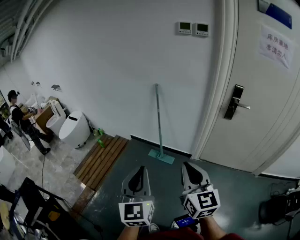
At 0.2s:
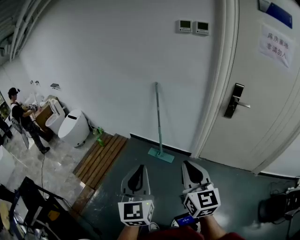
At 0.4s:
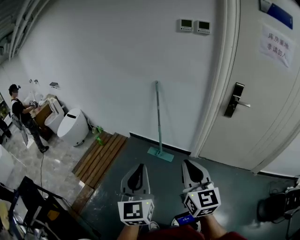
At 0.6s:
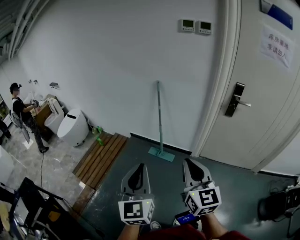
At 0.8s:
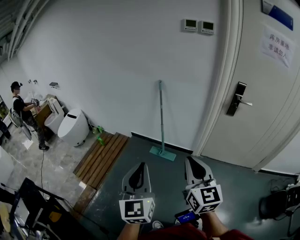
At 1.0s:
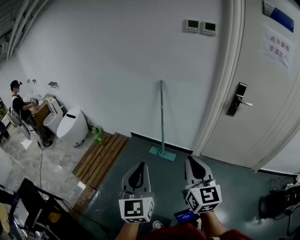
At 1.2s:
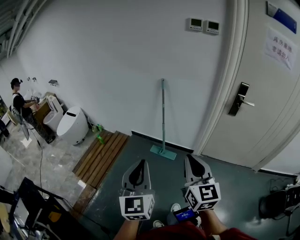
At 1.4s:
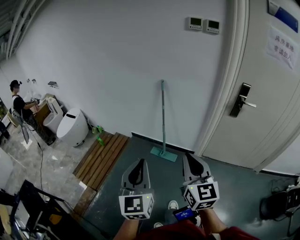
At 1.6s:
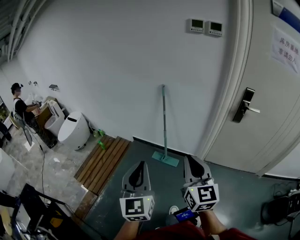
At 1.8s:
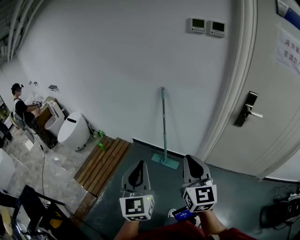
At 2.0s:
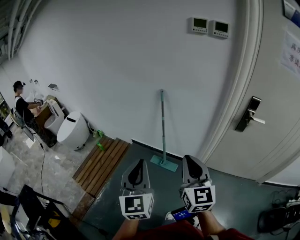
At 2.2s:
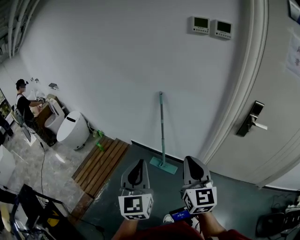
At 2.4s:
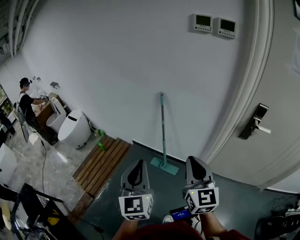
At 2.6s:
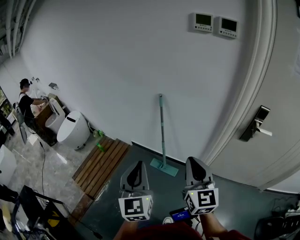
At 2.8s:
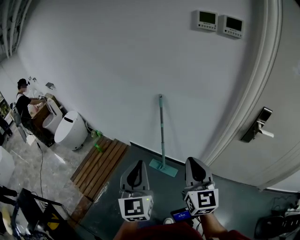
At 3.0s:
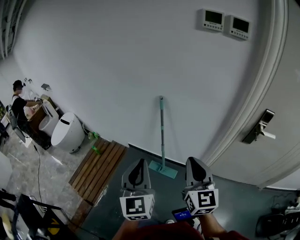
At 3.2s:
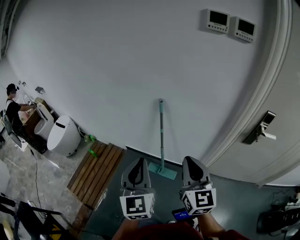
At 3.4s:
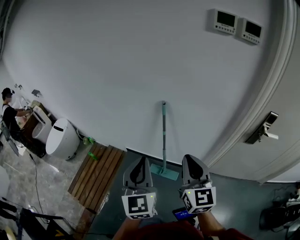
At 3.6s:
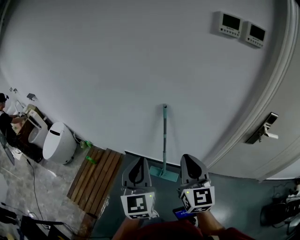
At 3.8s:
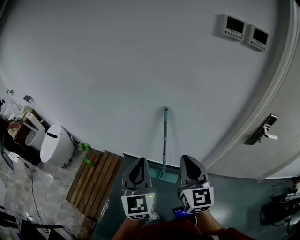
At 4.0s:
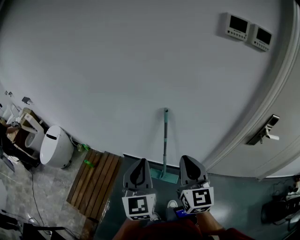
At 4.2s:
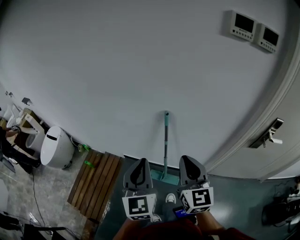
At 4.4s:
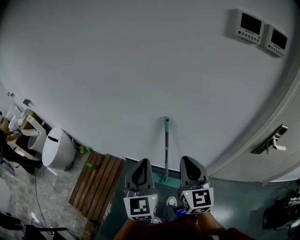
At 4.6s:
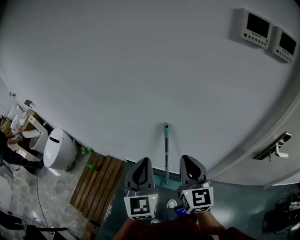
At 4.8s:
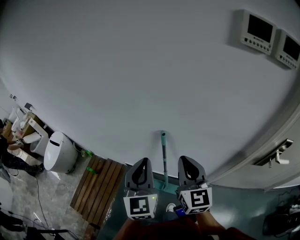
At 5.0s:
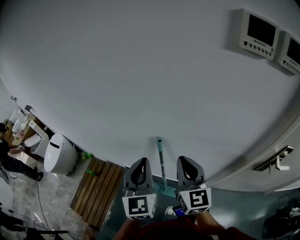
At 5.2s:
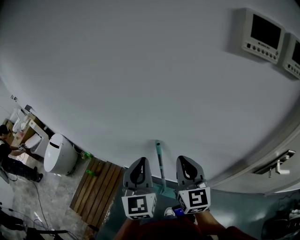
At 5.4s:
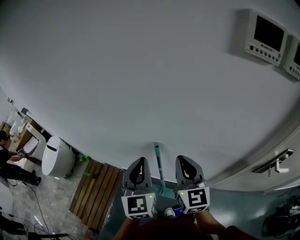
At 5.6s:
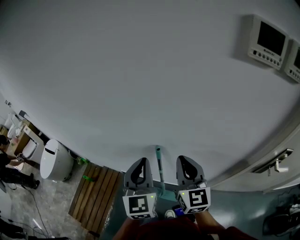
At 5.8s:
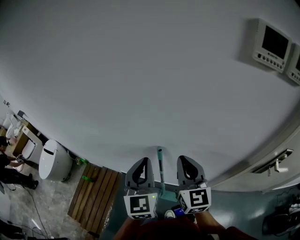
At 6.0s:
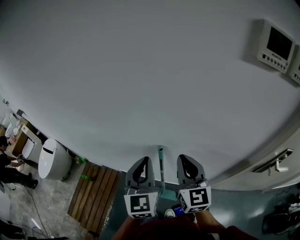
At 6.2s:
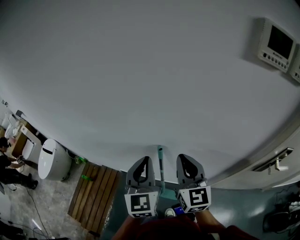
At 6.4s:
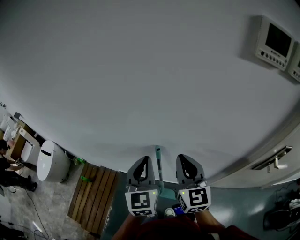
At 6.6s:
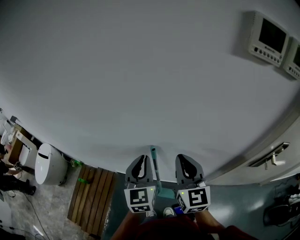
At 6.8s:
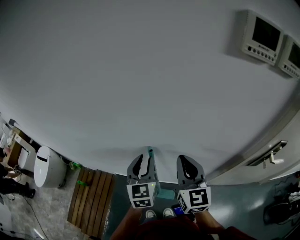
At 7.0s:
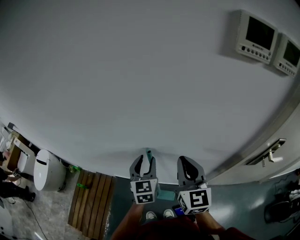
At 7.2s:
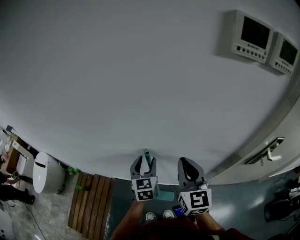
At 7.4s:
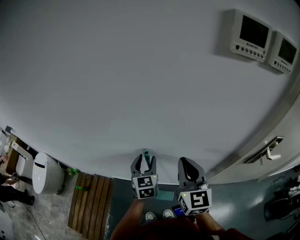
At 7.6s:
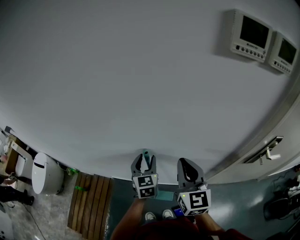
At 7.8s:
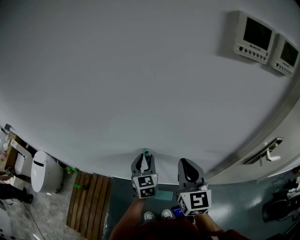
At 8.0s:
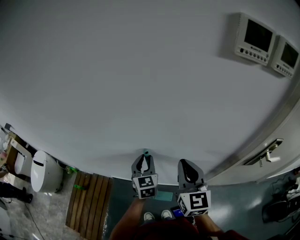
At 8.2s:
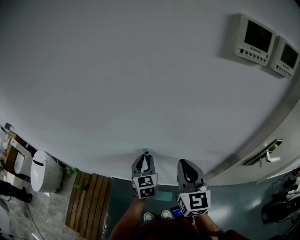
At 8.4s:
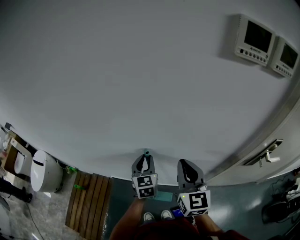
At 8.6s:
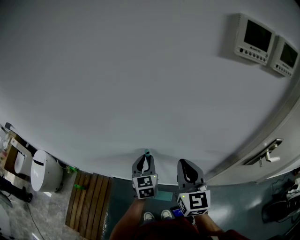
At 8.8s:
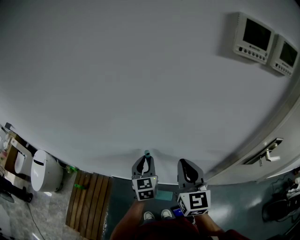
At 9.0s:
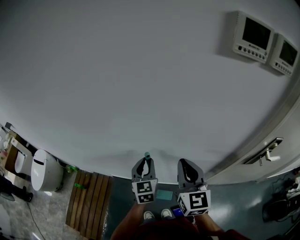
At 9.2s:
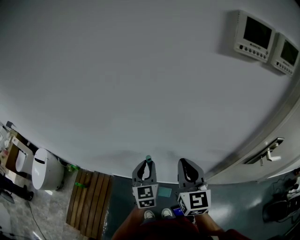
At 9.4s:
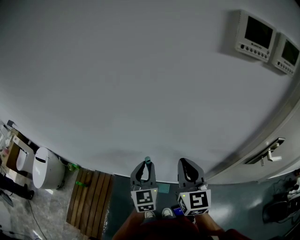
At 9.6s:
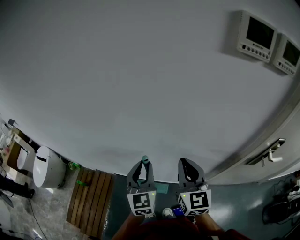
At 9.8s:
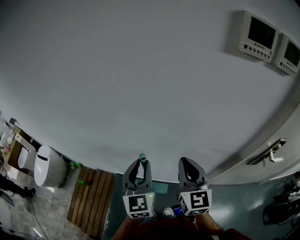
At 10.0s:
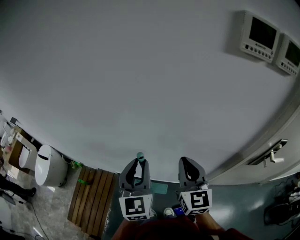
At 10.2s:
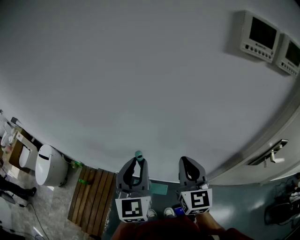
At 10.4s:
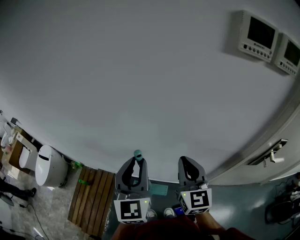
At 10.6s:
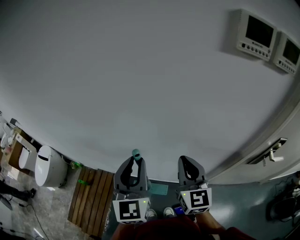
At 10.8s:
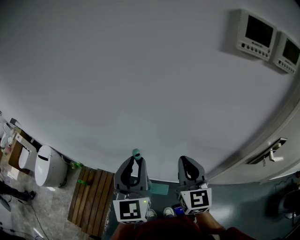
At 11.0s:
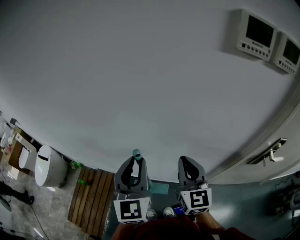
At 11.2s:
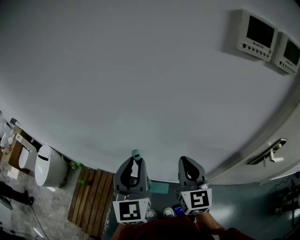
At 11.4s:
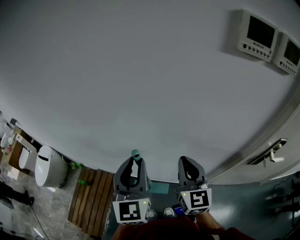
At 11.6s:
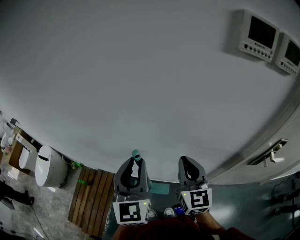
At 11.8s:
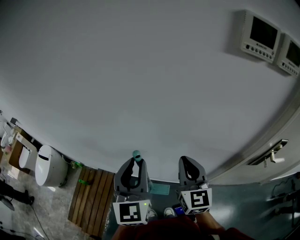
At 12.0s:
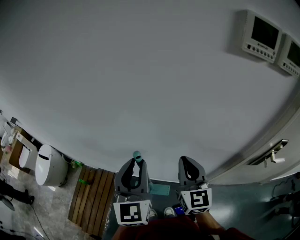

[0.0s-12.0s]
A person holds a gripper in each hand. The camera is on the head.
0.0s to 1.6s: The left gripper travels forward and to the left by some 10 cm, while the right gripper moves forward, approximately 10 cm.
1.6s to 3.0s: Both grippers travel together forward, approximately 25 cm.
3.0s to 4.4s: Both grippers travel together forward, approximately 20 cm.
4.4s to 6.0s: The grippers both shift forward by some 15 cm.
6.0s to 7.6s: The right gripper shifts roughly 5 cm to the right; the left gripper travels downward and forward by approximately 15 cm, and opens its fingers.
7.6s to 9.0s: The left gripper closes up.
9.0s to 10.4s: The left gripper shifts approximately 20 cm upward and backward.
10.4s to 12.0s: Both grippers stay about where they are.

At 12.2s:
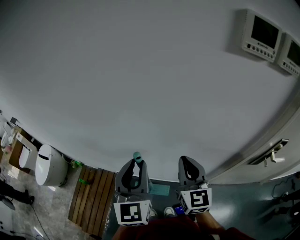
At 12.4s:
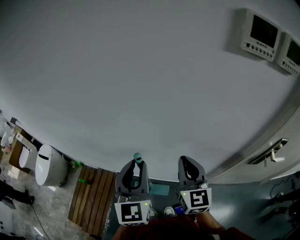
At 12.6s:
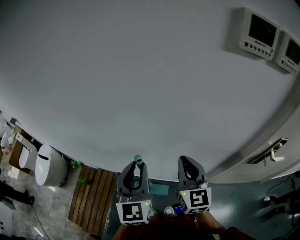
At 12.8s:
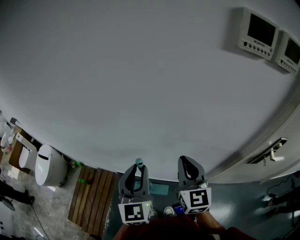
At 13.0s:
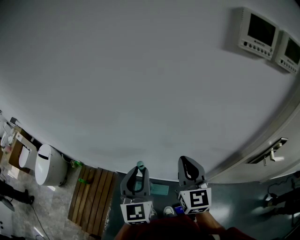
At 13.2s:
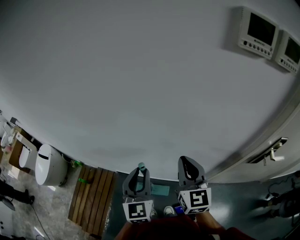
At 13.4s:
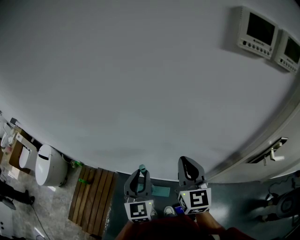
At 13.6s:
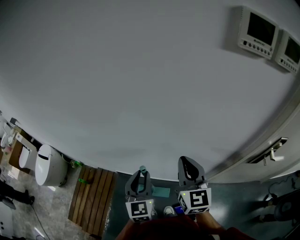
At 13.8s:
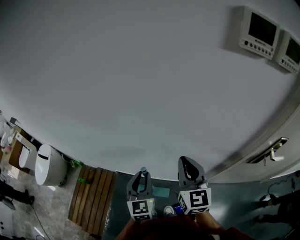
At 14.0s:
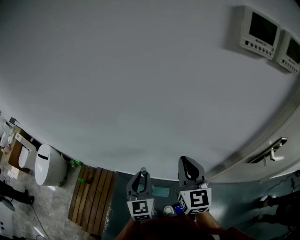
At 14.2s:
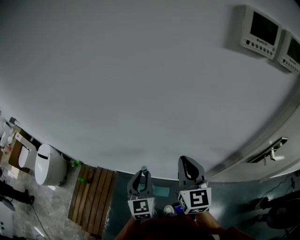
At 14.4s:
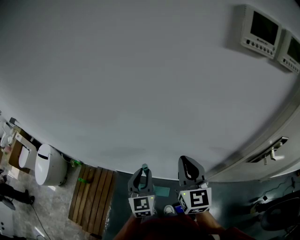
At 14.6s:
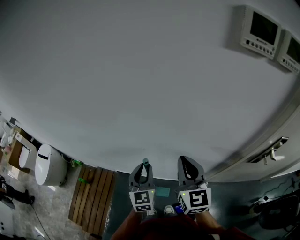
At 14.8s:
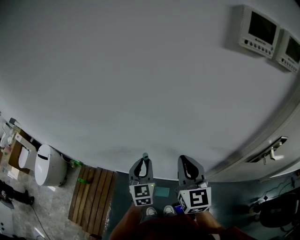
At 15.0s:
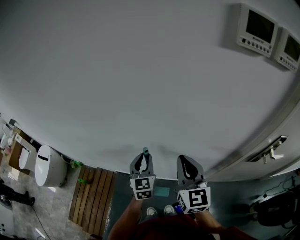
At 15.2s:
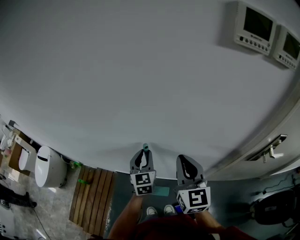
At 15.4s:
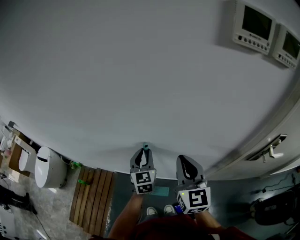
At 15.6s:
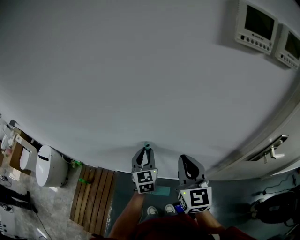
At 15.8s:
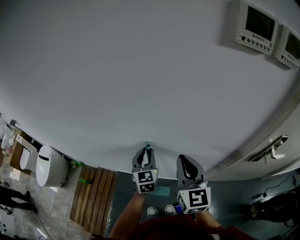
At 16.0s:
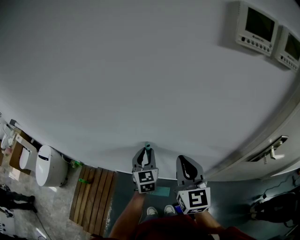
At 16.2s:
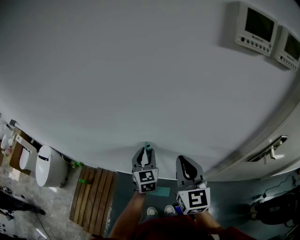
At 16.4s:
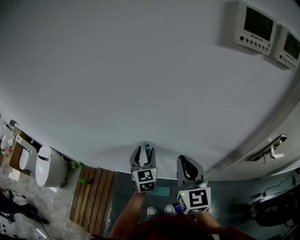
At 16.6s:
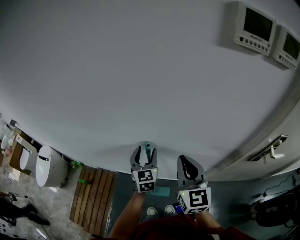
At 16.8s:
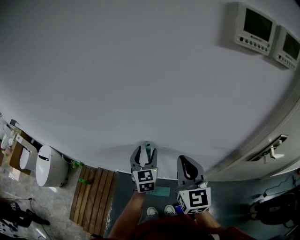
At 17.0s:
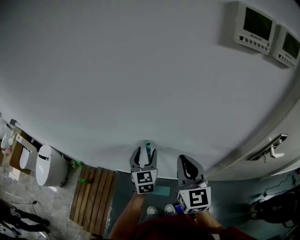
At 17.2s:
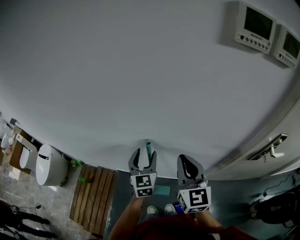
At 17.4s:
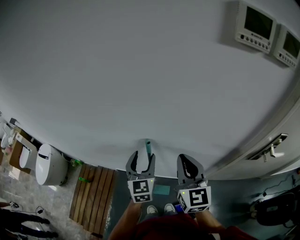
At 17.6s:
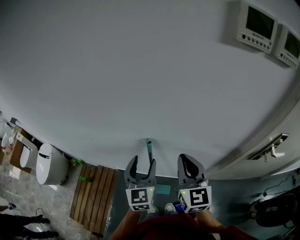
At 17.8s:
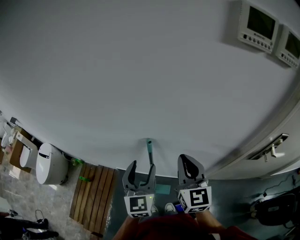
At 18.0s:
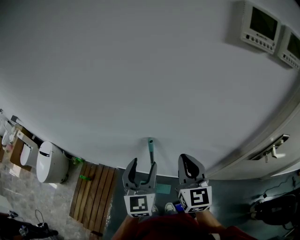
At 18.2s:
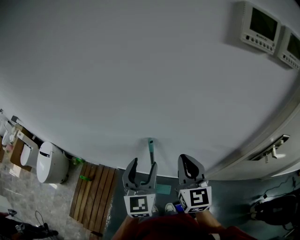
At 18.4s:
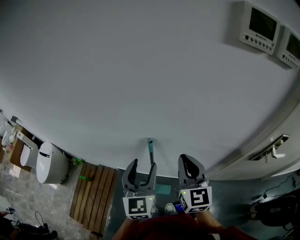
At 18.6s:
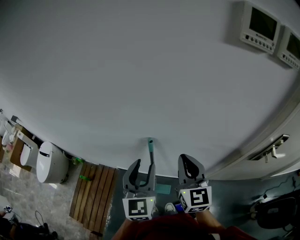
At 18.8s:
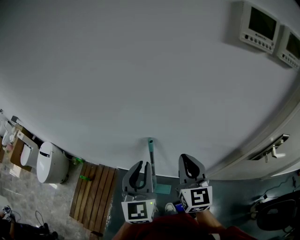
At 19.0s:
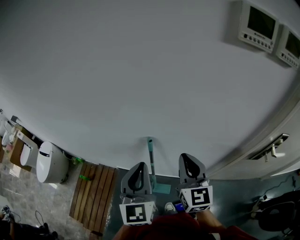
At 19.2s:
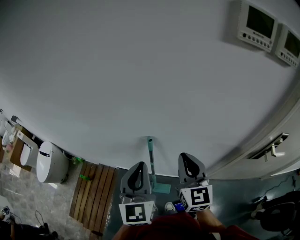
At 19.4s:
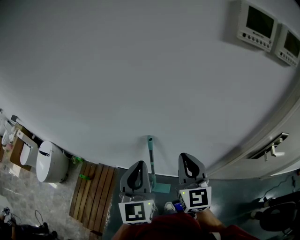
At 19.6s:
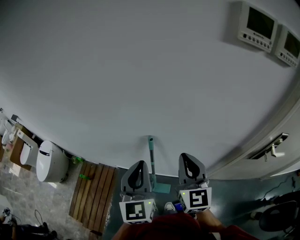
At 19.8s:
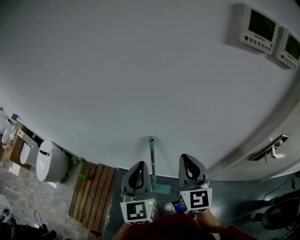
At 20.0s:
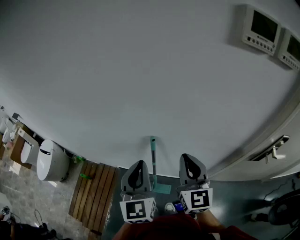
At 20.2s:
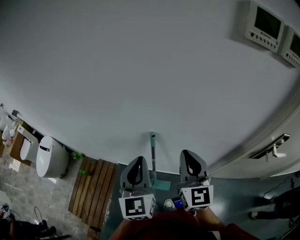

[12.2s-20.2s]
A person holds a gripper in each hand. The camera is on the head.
12.2s to 13.8s: The left gripper travels downward by roughly 15 cm.
13.8s to 15.4s: The left gripper goes roughly 10 cm forward.
15.4s to 17.0s: The left gripper opens.
17.0s to 18.6s: The left gripper moves upward and backward, about 15 cm.
18.6s to 20.2s: The left gripper closes.

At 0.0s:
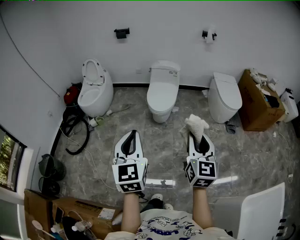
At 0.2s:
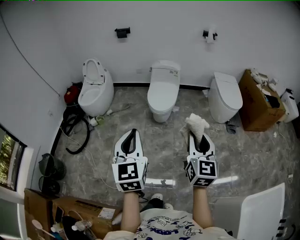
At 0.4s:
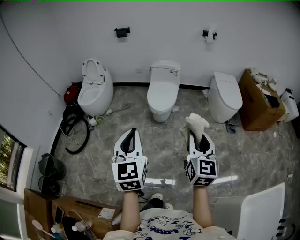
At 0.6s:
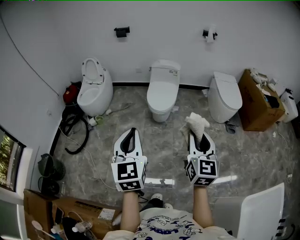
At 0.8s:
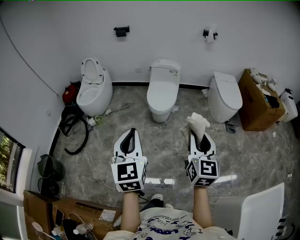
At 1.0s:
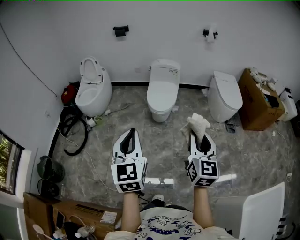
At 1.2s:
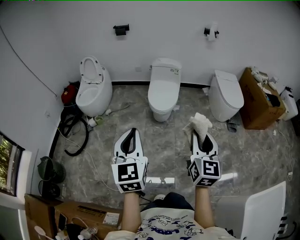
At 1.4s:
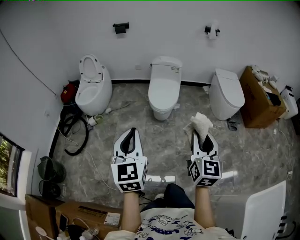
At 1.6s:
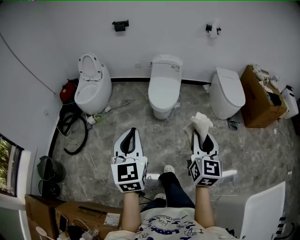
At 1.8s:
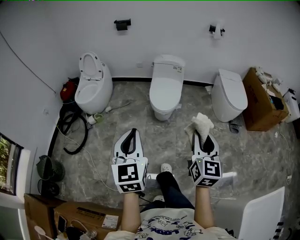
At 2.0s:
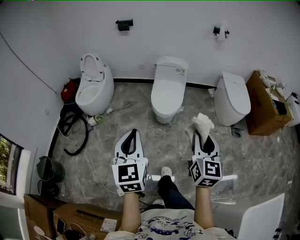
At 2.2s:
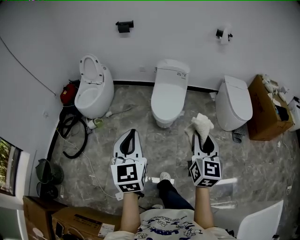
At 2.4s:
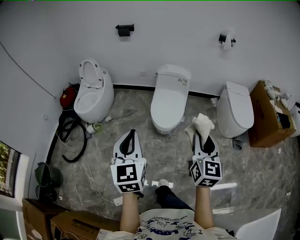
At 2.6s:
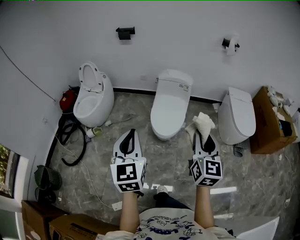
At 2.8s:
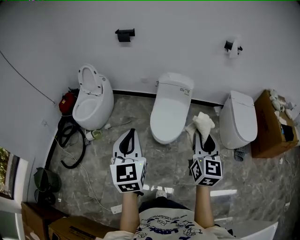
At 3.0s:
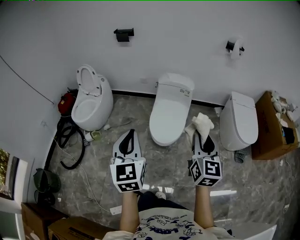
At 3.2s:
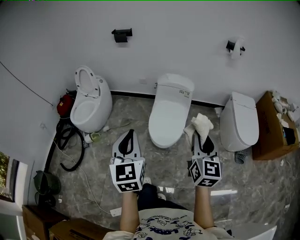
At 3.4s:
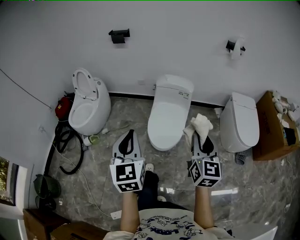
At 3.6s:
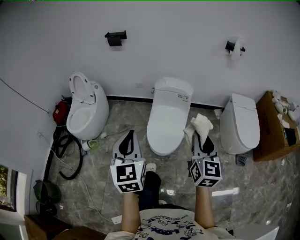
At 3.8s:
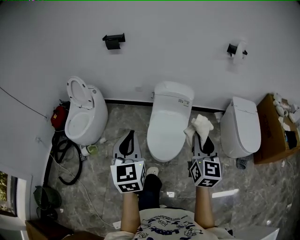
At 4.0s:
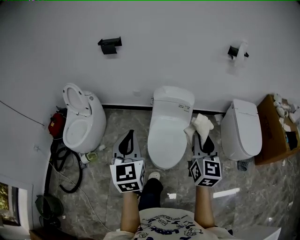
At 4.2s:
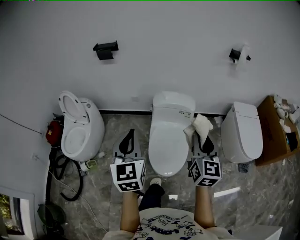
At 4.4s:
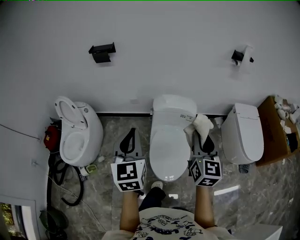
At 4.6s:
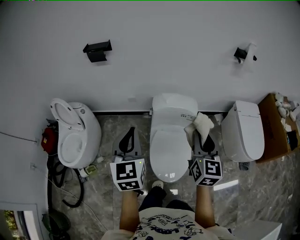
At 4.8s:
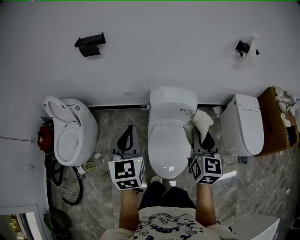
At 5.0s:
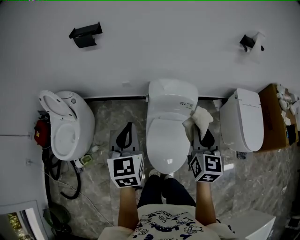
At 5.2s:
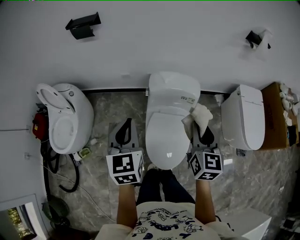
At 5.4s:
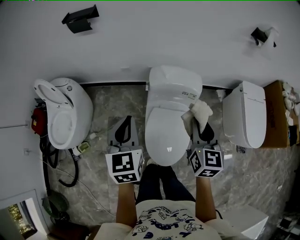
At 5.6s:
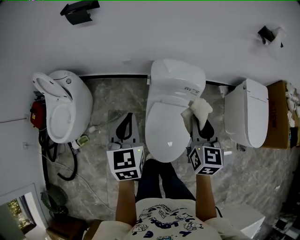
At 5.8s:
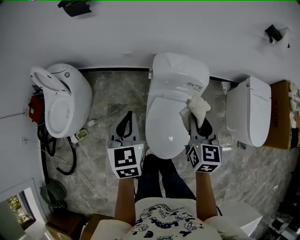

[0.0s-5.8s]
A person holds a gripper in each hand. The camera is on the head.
0.0s to 1.4s: The left gripper moves forward and to the left, roughly 10 cm. The right gripper shifts some 5 cm forward.
1.4s to 2.8s: Both grippers travel together forward, about 35 cm.
2.8s to 4.4s: The pair of grippers is taken forward, roughly 50 cm.
4.4s to 5.8s: The grippers both shift downward and forward by roughly 25 cm. The right gripper swivels roughly 20 degrees. Meanwhile the left gripper changes its angle by some 20 degrees.
